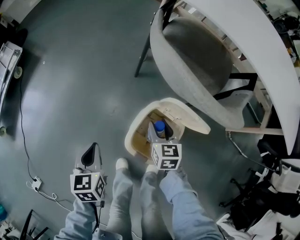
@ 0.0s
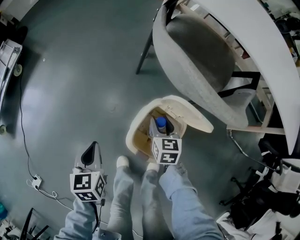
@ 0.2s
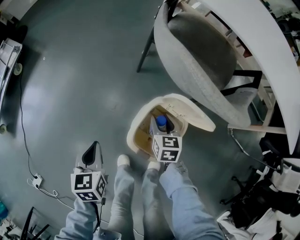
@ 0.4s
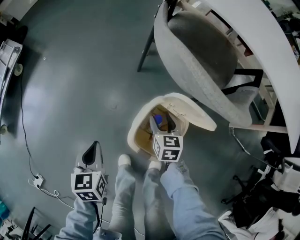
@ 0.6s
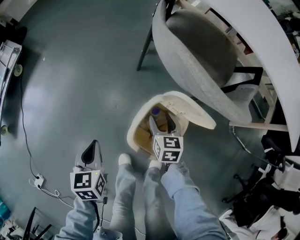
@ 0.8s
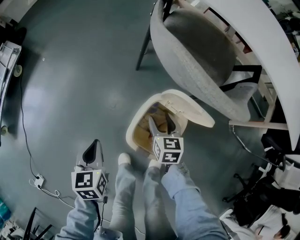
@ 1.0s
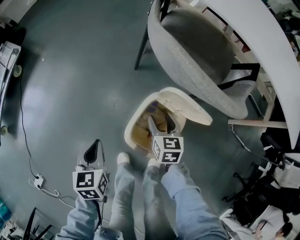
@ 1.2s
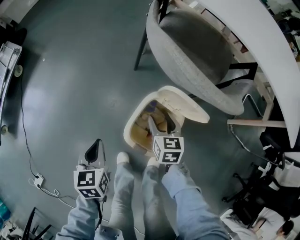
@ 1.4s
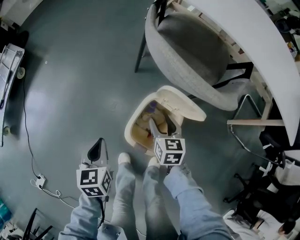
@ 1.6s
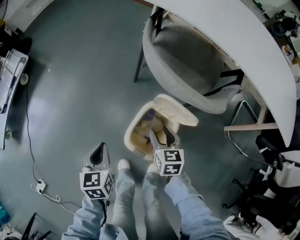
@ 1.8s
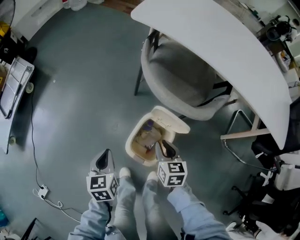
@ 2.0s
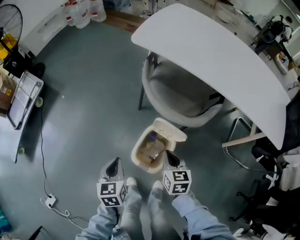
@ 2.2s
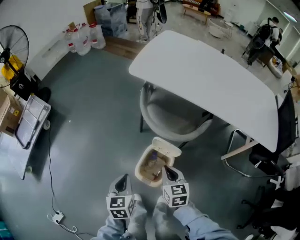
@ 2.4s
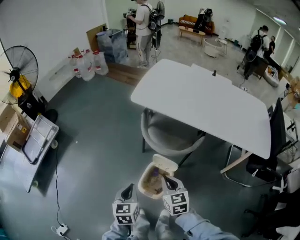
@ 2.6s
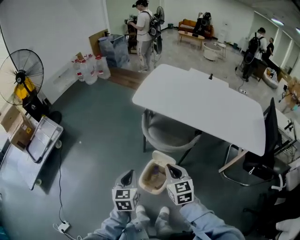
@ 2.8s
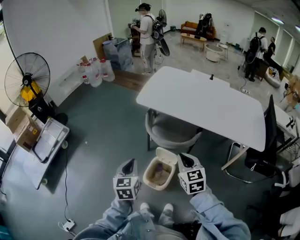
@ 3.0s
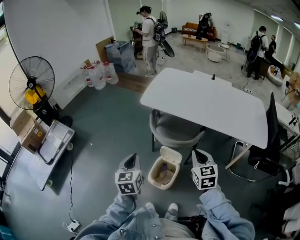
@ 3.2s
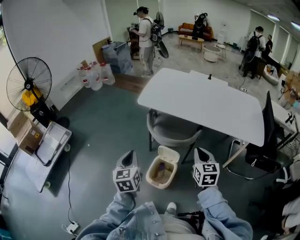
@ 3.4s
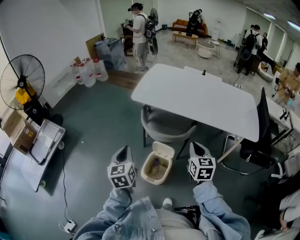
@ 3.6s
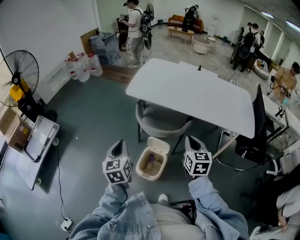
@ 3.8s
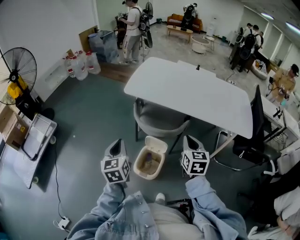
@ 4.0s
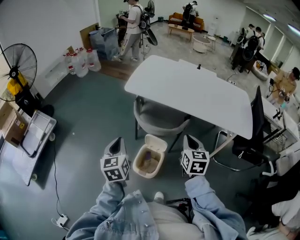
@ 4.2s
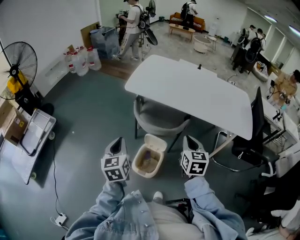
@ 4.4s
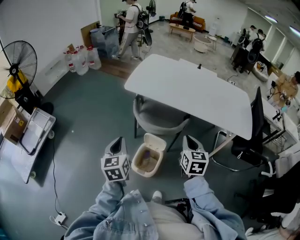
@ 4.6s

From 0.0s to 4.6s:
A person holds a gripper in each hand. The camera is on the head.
From 0.0s to 1.6s: The grippers make only small movements.
From 1.6s to 3.0s: Both grippers travel together upward, about 40 cm. The right gripper swivels roughly 20 degrees, and closes its fingers, while the left gripper swivels some 20 degrees.
From 3.0s to 4.6s: The right gripper is displaced to the right by approximately 5 cm, and changes its angle by some 20 degrees.

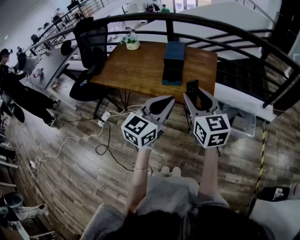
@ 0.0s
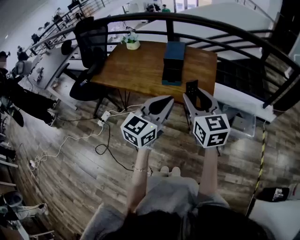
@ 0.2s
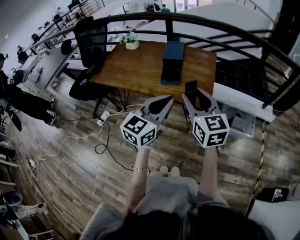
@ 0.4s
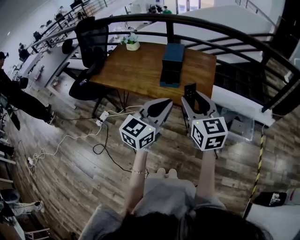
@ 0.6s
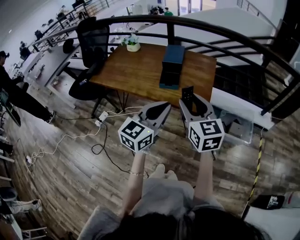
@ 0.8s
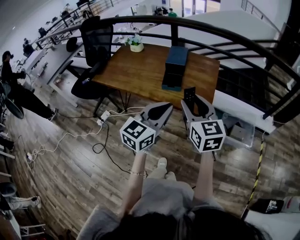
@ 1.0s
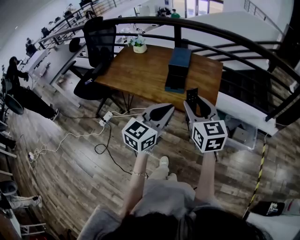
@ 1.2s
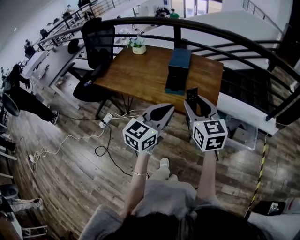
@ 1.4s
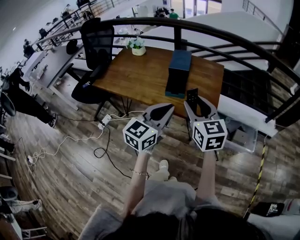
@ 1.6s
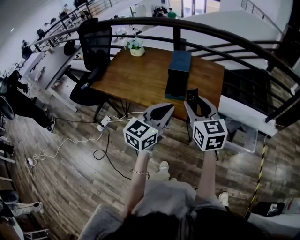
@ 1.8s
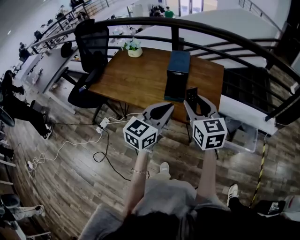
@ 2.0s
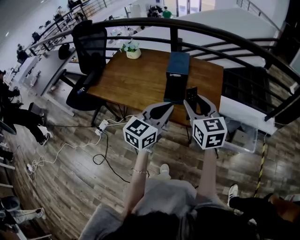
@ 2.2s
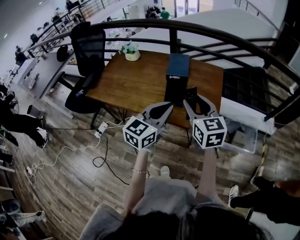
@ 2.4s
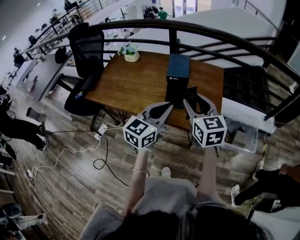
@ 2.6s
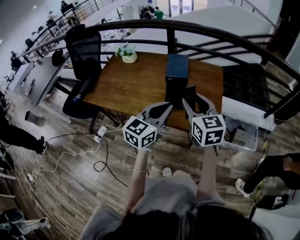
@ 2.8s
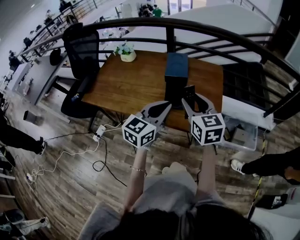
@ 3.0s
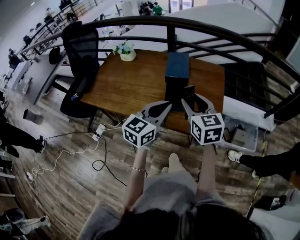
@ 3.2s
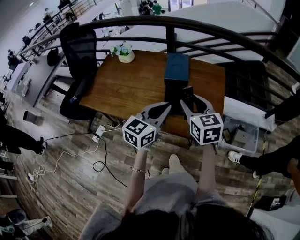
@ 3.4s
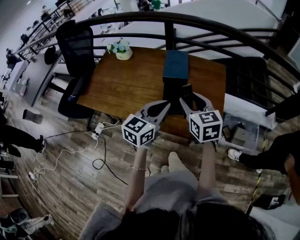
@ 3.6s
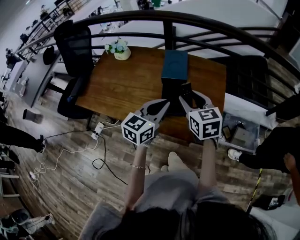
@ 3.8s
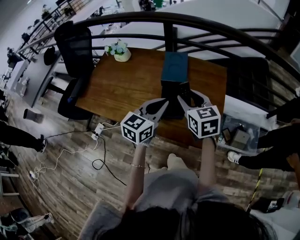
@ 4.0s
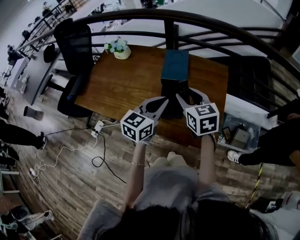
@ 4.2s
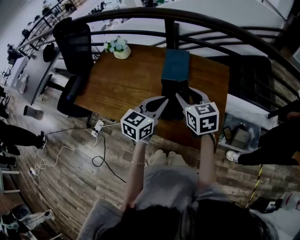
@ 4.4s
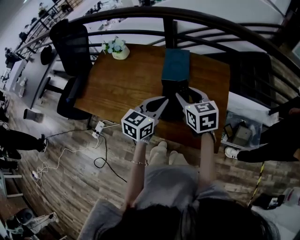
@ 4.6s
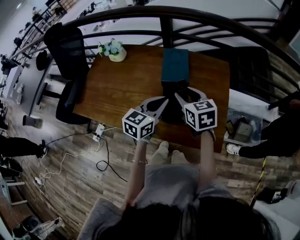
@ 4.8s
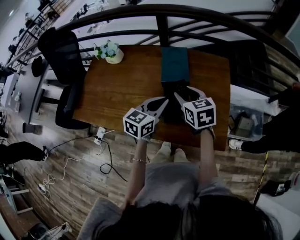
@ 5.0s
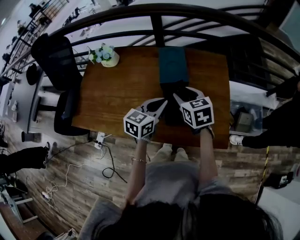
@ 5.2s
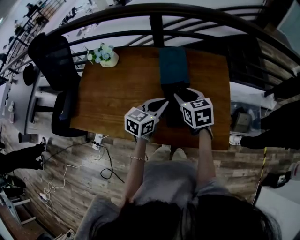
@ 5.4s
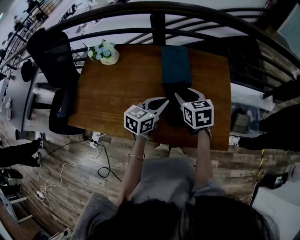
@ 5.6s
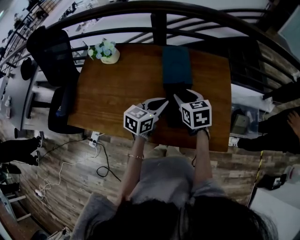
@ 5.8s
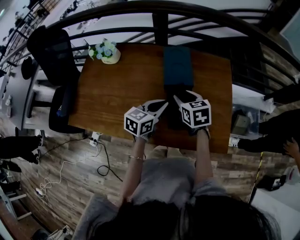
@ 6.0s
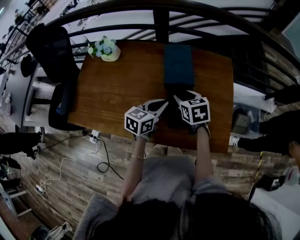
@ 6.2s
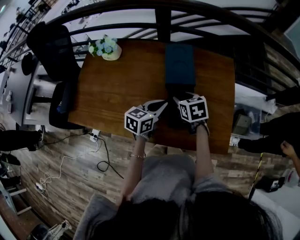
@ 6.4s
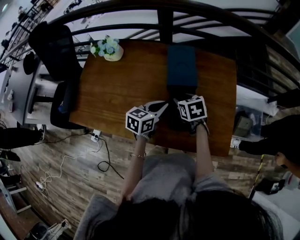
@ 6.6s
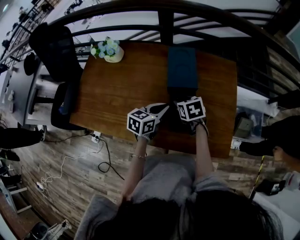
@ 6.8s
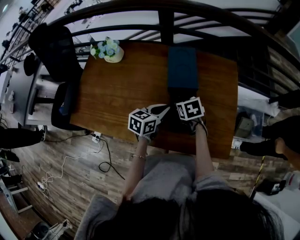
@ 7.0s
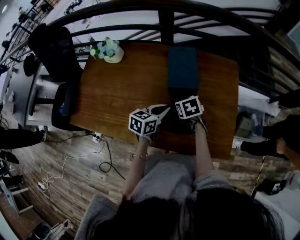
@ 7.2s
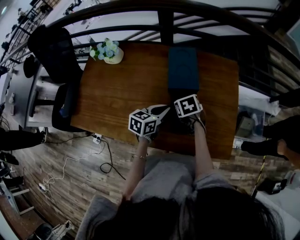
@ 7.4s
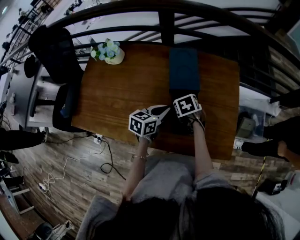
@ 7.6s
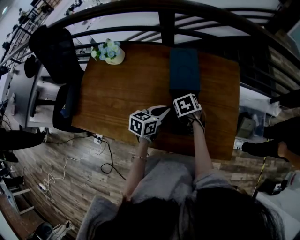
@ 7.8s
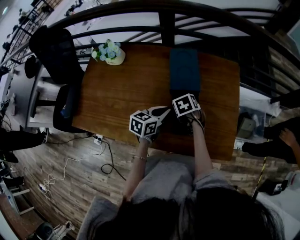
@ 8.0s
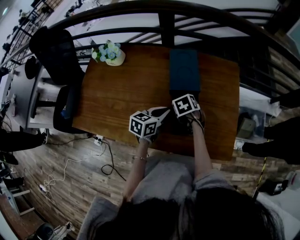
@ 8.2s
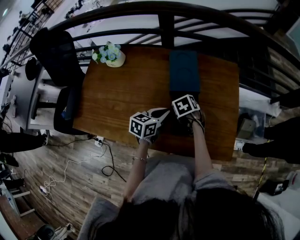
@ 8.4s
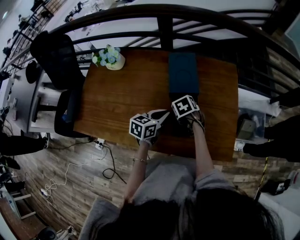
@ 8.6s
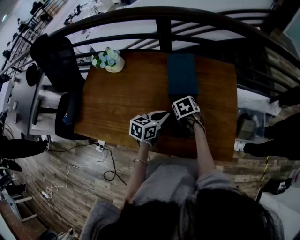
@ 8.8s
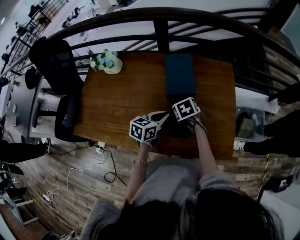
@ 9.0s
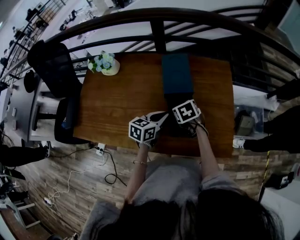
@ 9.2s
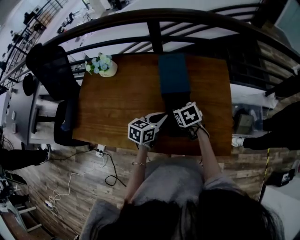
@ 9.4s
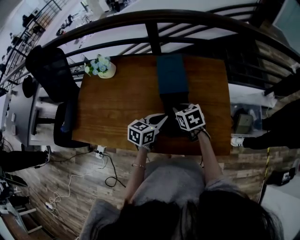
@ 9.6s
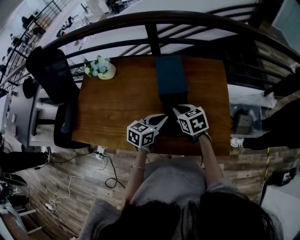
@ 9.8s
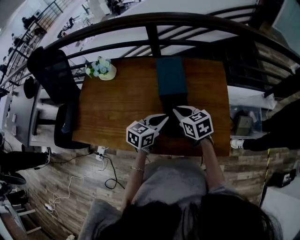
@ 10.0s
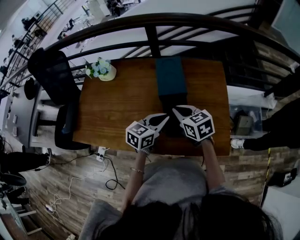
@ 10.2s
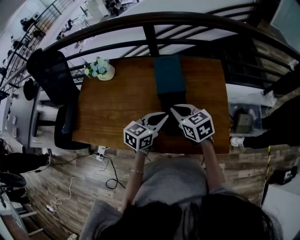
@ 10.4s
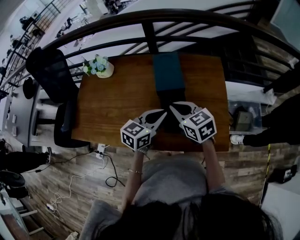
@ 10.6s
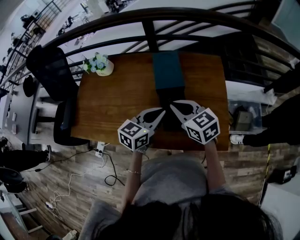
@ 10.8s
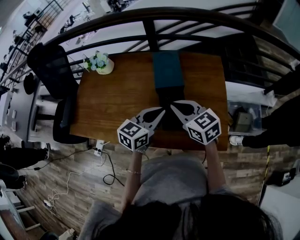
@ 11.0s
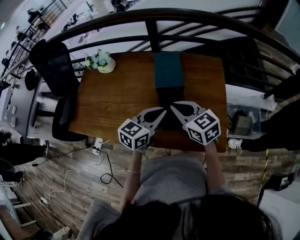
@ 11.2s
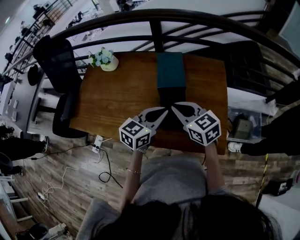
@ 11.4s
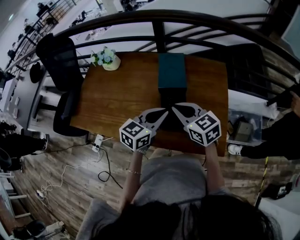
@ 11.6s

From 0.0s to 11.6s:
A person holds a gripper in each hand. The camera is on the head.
From 0.0s to 1.4s: There are only small adjustments of the grippers.
From 1.4s to 2.8s: The two grippers go roughly 15 cm forward and to the left.
From 2.8s to 4.4s: The two grippers go about 15 cm forward and downward.
From 4.4s to 5.8s: The left gripper shifts approximately 10 cm downward, forward and to the left; the right gripper goes approximately 10 cm downward, to the left and forward.
From 5.8s to 7.2s: The right gripper travels downward by about 10 cm, and turns by roughly 20 degrees, while the left gripper travels downward by roughly 5 cm.
From 7.2s to 8.8s: The grippers move only a little.
From 8.8s to 10.2s: The left gripper moves upward, approximately 5 cm, while the right gripper shifts roughly 15 cm upward, tilts its fingers about 40 degrees upward, and closes up.
From 10.2s to 11.6s: The right gripper shifts by about 5 cm. The left gripper ends up approximately 5 cm from where it was.

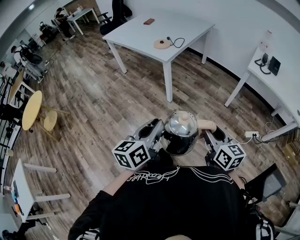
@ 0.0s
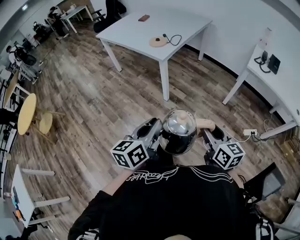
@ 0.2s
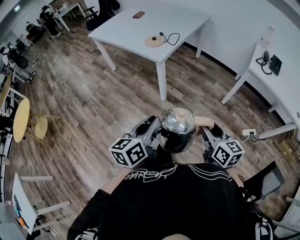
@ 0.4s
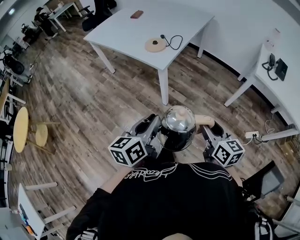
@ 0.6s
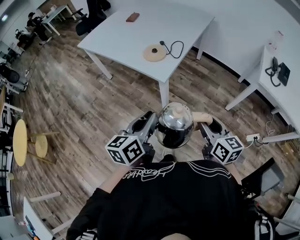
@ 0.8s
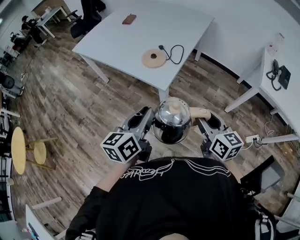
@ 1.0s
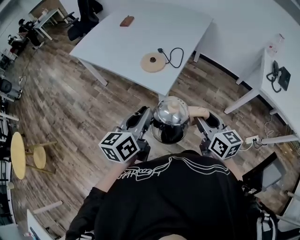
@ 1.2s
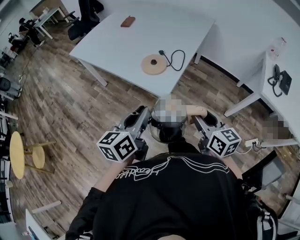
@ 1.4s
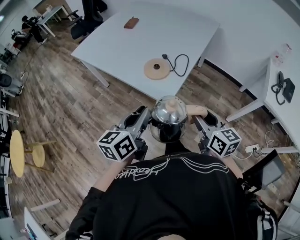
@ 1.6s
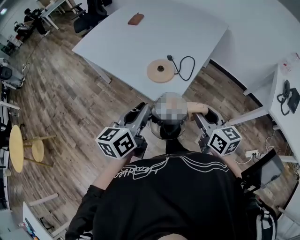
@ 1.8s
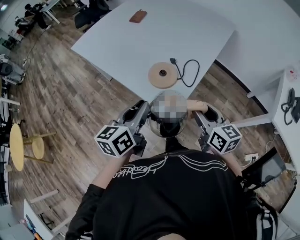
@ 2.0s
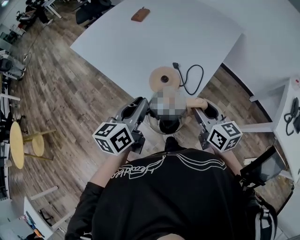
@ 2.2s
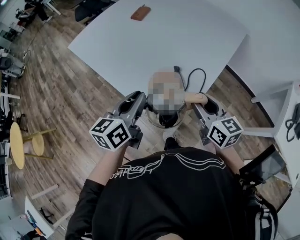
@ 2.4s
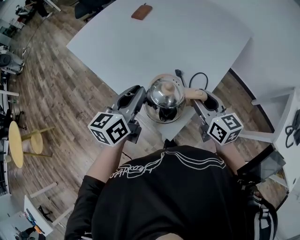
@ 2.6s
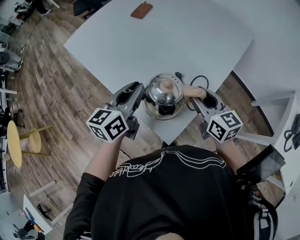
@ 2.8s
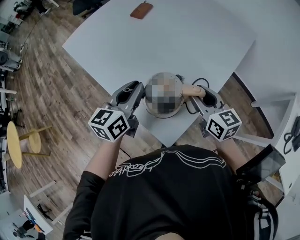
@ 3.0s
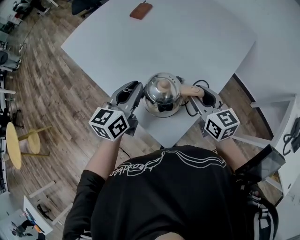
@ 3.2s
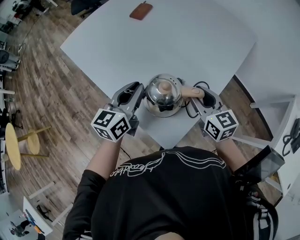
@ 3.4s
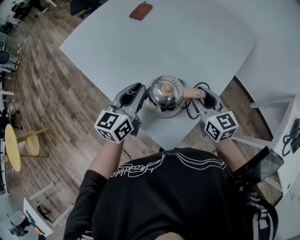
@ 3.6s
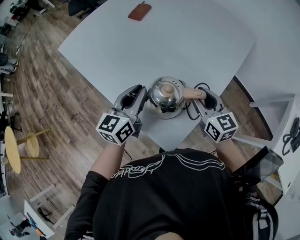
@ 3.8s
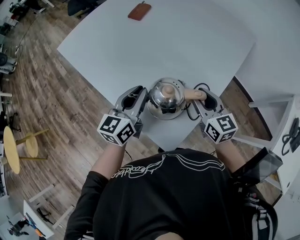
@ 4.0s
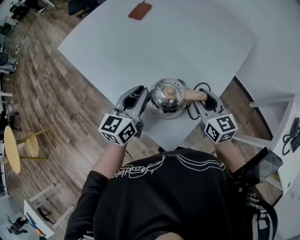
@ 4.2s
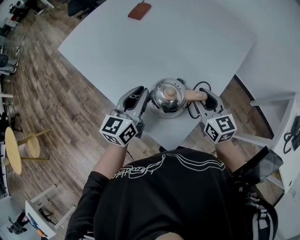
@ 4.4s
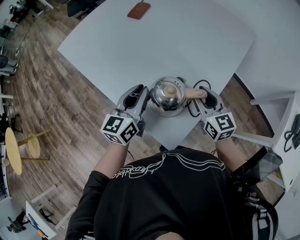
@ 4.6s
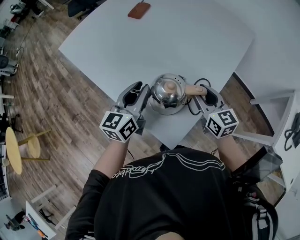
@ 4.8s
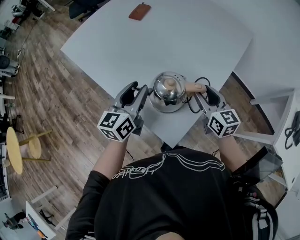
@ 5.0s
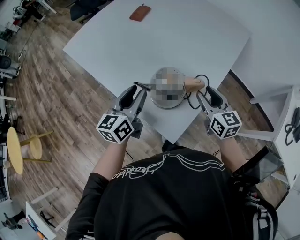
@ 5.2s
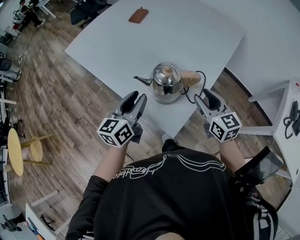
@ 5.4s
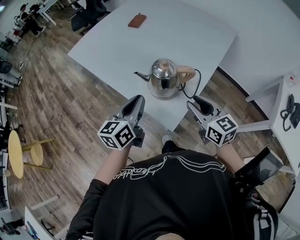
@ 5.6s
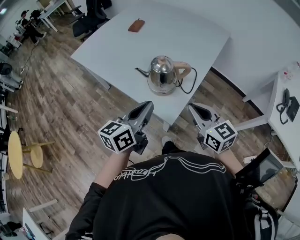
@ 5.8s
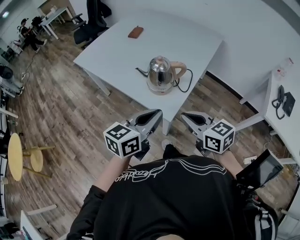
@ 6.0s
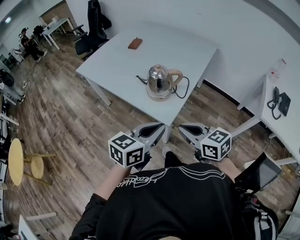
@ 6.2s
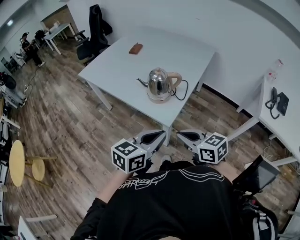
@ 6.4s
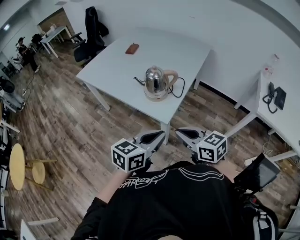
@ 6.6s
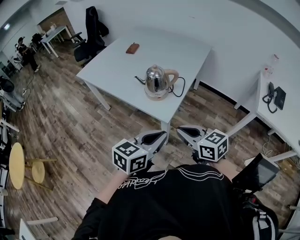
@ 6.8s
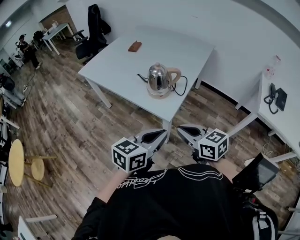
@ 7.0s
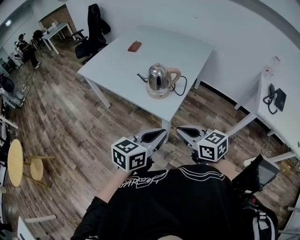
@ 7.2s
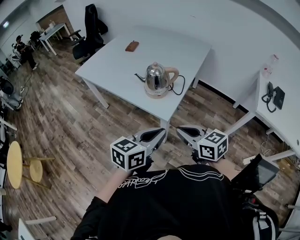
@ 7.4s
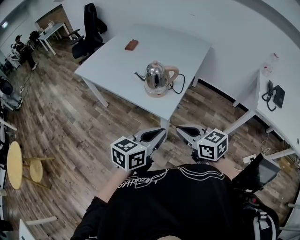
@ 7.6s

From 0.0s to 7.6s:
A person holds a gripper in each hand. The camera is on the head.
From 0.0s to 1.6s: The two grippers travel together, forward, approximately 50 cm.
From 1.6s to 3.0s: Both grippers move forward, approximately 30 cm.
From 3.0s to 4.6s: There are only small adjustments of the grippers.
From 4.6s to 6.0s: The grippers both shift backward by some 30 cm. The right gripper closes, while the left gripper turns by about 20 degrees, and opens, then closes once more.
From 6.0s to 7.6s: The grippers both shift backward by about 10 cm.
